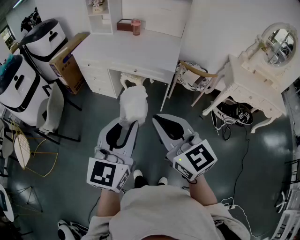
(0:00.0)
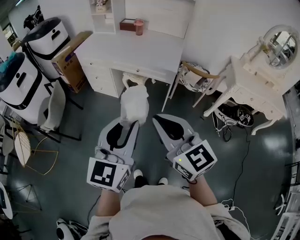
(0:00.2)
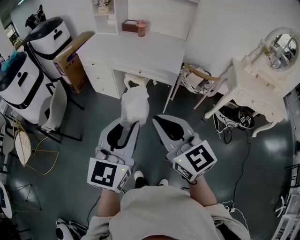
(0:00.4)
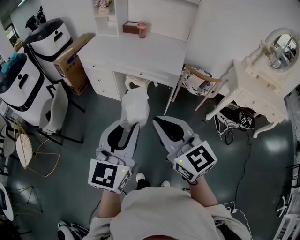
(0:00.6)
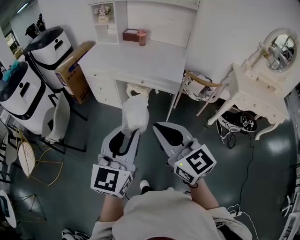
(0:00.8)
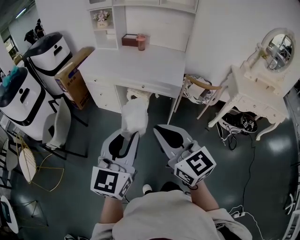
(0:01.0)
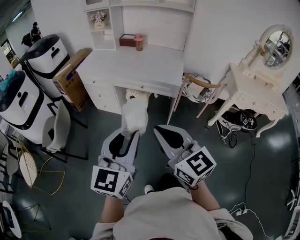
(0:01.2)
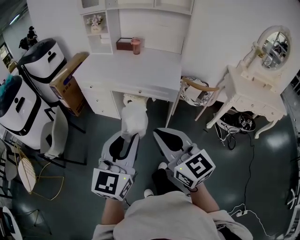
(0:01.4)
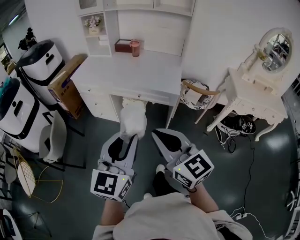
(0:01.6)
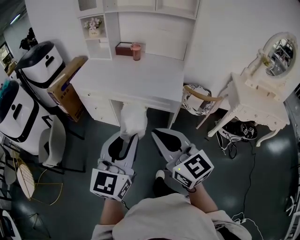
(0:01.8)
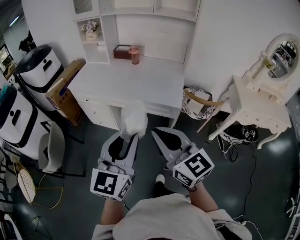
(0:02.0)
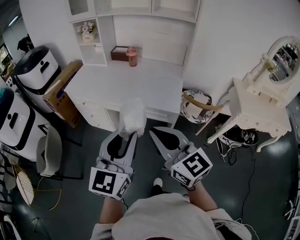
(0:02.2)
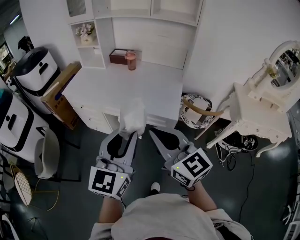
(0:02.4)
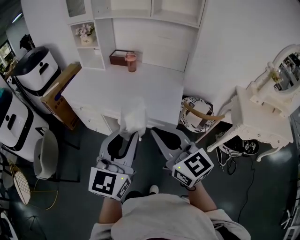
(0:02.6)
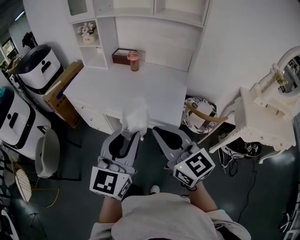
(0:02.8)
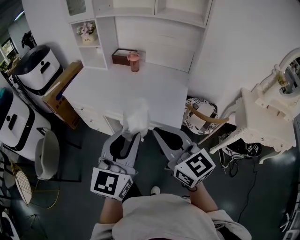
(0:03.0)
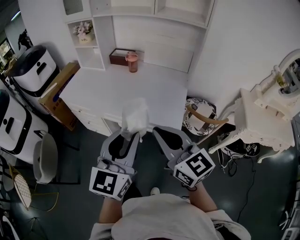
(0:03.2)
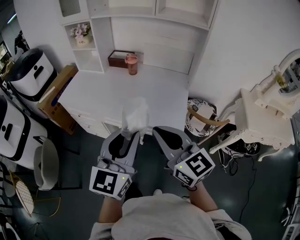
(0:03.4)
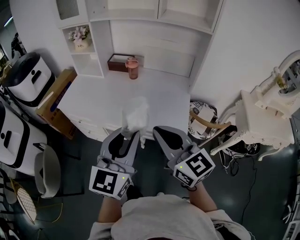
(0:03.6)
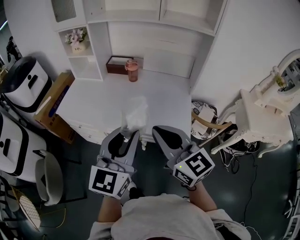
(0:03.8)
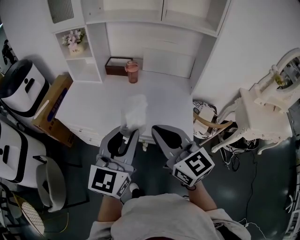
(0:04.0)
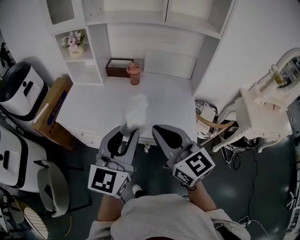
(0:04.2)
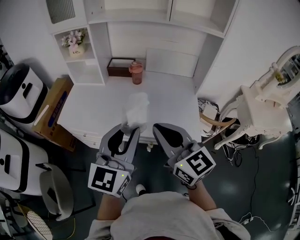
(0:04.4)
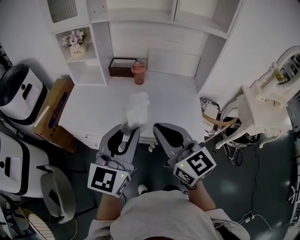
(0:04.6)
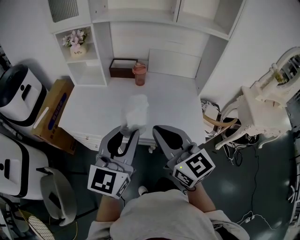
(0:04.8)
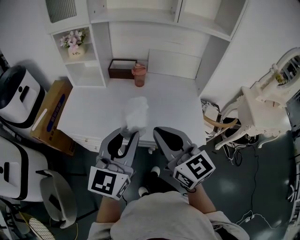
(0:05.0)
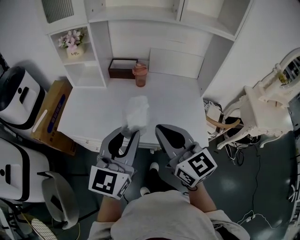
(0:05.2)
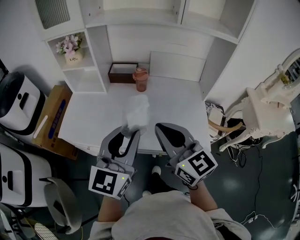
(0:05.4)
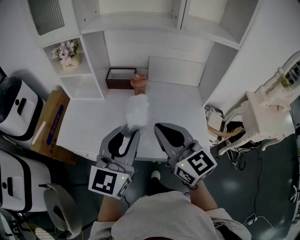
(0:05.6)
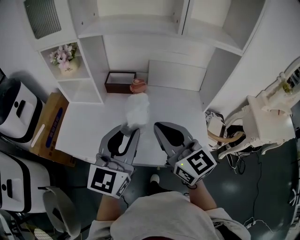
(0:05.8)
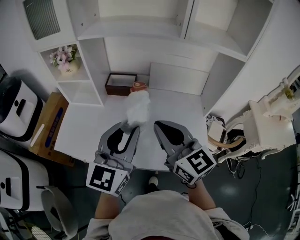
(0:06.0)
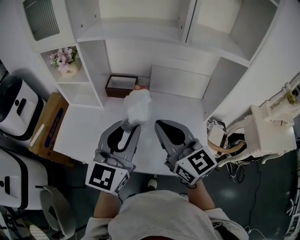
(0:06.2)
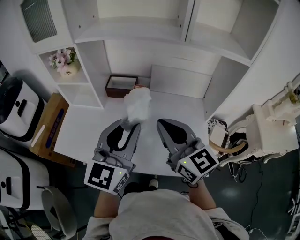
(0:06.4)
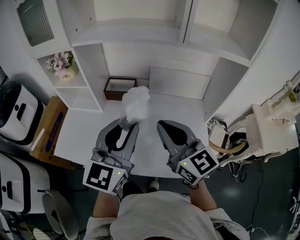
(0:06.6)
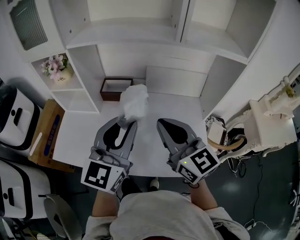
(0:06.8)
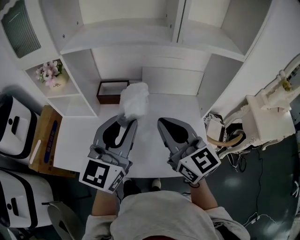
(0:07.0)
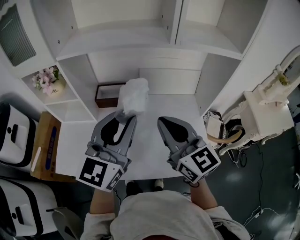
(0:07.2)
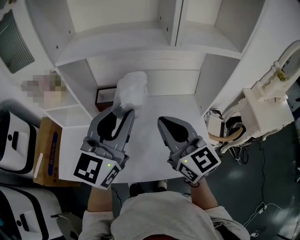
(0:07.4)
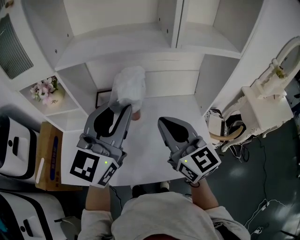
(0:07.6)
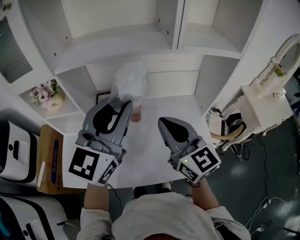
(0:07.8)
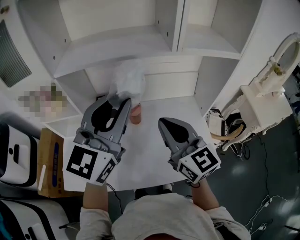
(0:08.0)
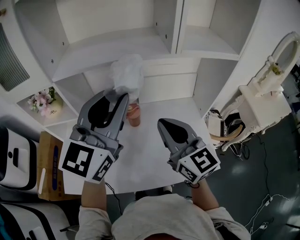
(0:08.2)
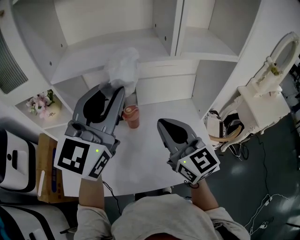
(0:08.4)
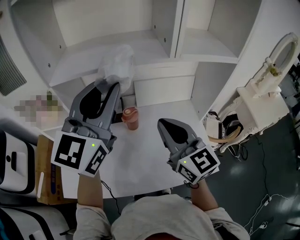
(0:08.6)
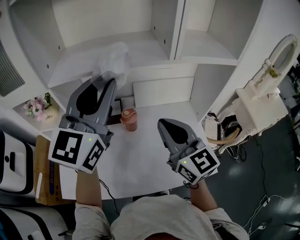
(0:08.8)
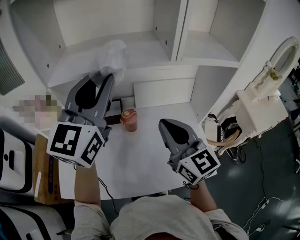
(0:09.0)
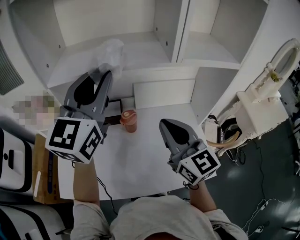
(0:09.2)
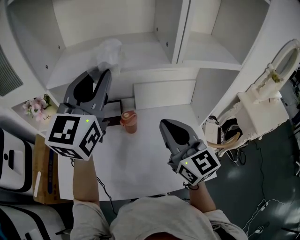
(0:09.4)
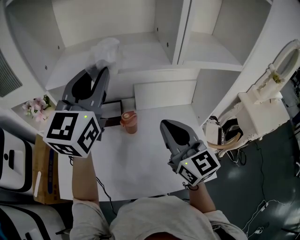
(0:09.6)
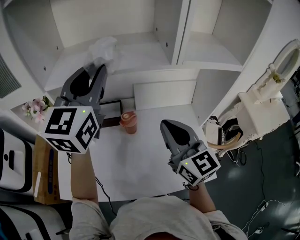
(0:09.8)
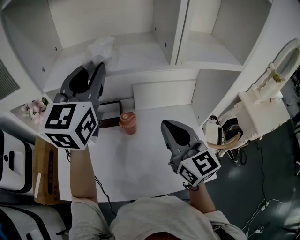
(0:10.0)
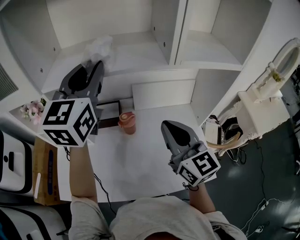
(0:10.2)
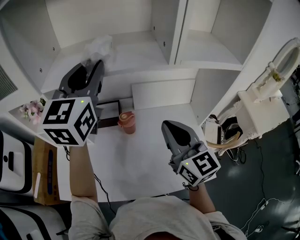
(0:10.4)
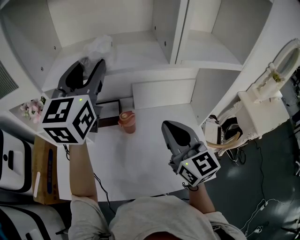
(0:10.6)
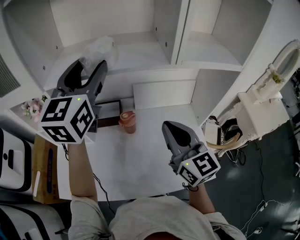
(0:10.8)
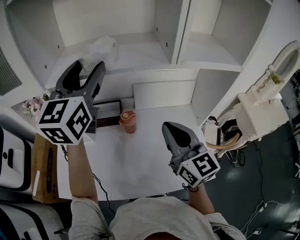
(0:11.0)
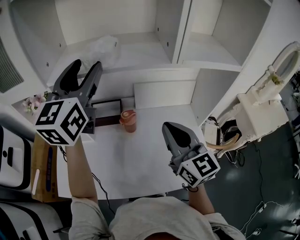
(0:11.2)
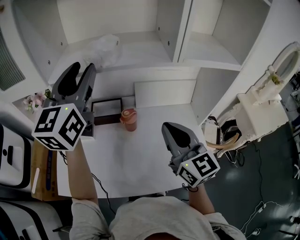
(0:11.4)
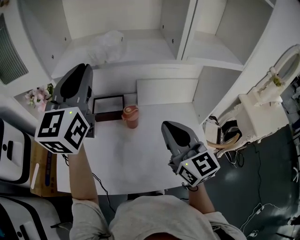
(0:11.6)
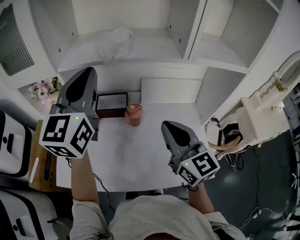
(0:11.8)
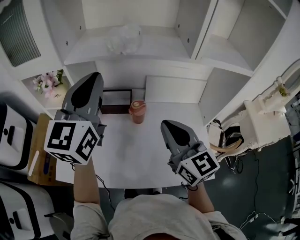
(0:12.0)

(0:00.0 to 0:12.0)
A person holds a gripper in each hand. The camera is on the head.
0:00.0 - 0:01.6: The grippers both shift forward by some 10 cm.
0:01.6 - 0:03.0: Both grippers travel together forward and to the right, roughly 30 cm.
0:03.0 - 0:04.4: The two grippers go some 25 cm forward and to the left.
0:04.4 - 0:06.0: The grippers both shift forward by roughly 20 cm.
0:06.0 - 0:07.6: The right gripper travels forward by some 10 cm, while the left gripper heads forward and upward, covering about 15 cm.
0:07.6 - 0:09.0: The left gripper shifts roughly 10 cm forward and upward.
0:09.0 - 0:10.4: The left gripper goes some 5 cm forward.
0:10.4 - 0:12.0: The right gripper shifts approximately 5 cm to the left; the left gripper shifts about 10 cm backward and to the left, and closes up.

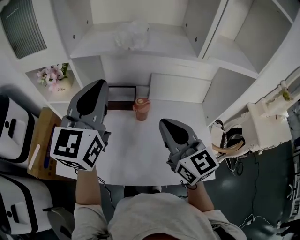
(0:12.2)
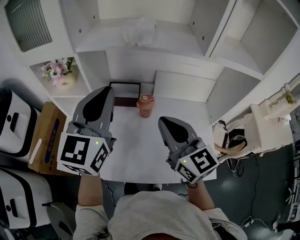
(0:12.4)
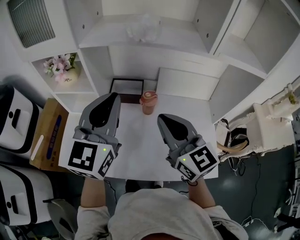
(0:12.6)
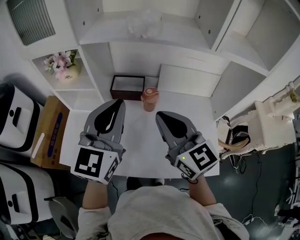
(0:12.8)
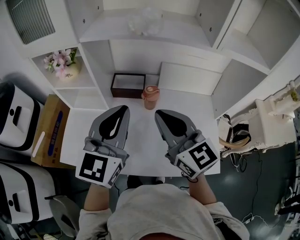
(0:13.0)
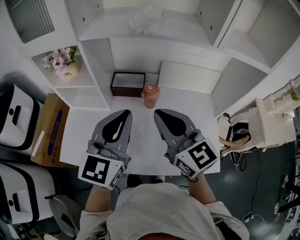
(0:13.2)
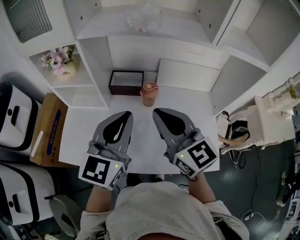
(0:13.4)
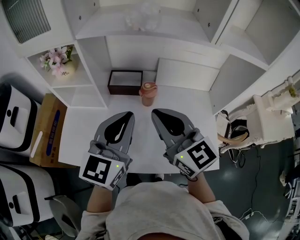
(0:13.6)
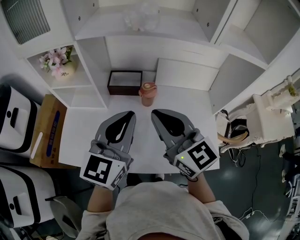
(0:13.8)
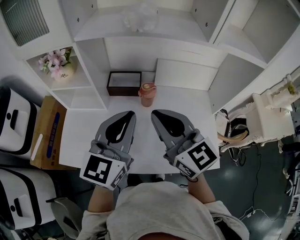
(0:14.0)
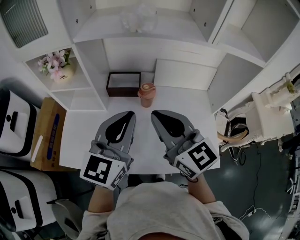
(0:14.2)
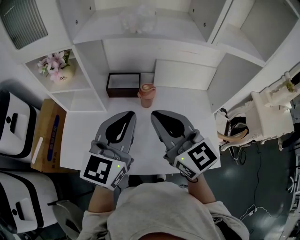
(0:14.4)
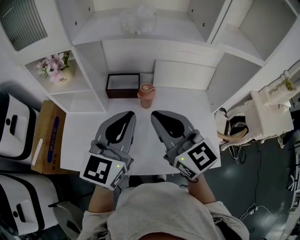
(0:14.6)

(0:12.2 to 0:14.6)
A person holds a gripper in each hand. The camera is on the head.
0:12.2 - 0:13.4: The left gripper moves downward and backward, some 15 cm. The right gripper travels to the left by some 5 cm.
0:13.4 - 0:14.6: Both grippers stay about where they are.

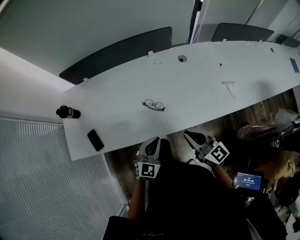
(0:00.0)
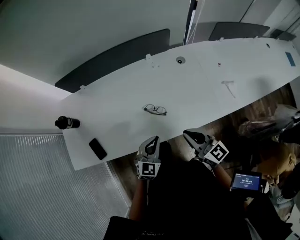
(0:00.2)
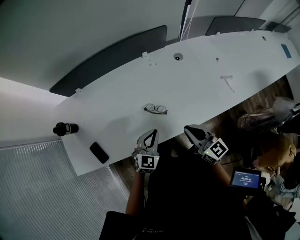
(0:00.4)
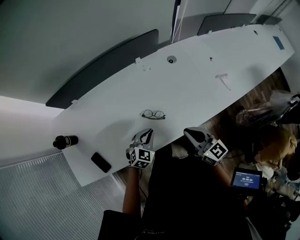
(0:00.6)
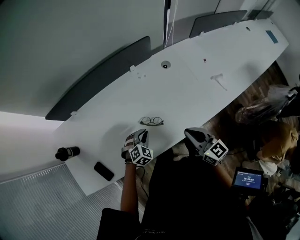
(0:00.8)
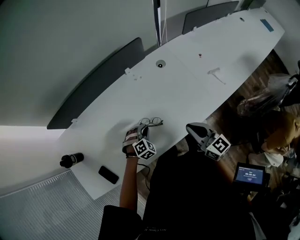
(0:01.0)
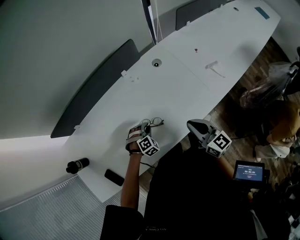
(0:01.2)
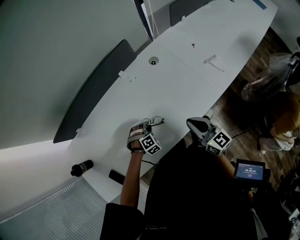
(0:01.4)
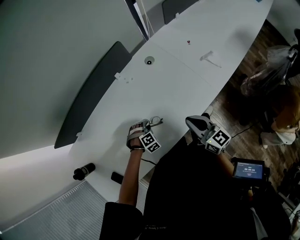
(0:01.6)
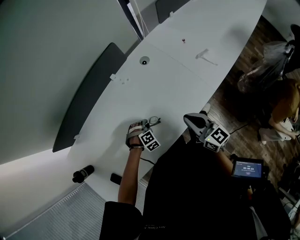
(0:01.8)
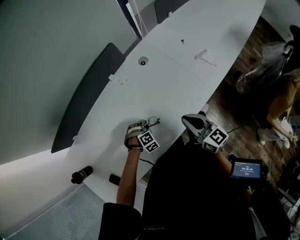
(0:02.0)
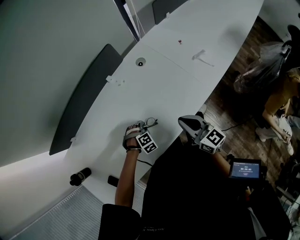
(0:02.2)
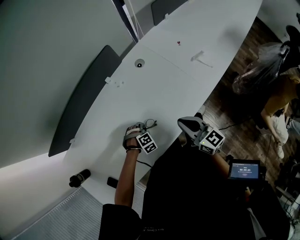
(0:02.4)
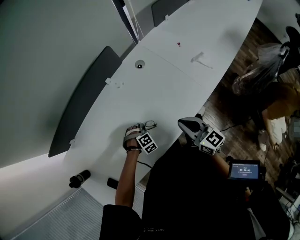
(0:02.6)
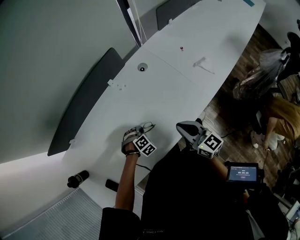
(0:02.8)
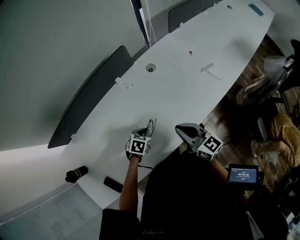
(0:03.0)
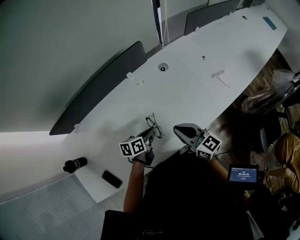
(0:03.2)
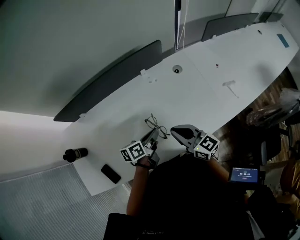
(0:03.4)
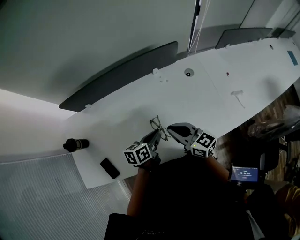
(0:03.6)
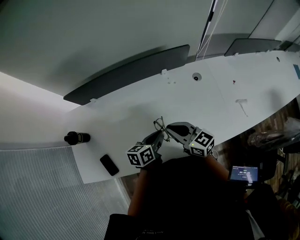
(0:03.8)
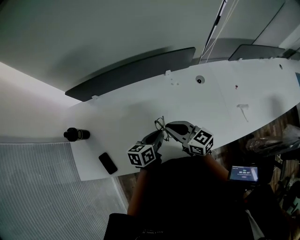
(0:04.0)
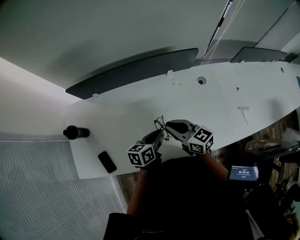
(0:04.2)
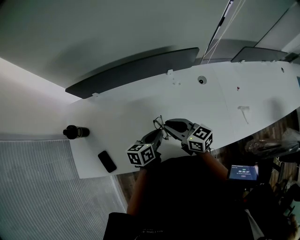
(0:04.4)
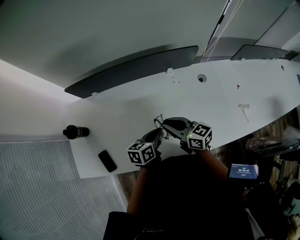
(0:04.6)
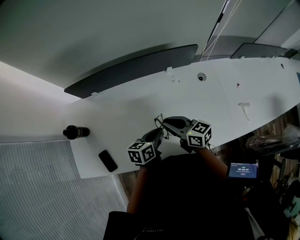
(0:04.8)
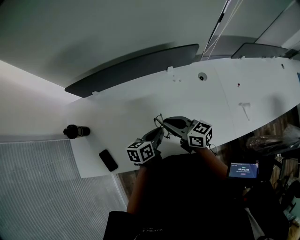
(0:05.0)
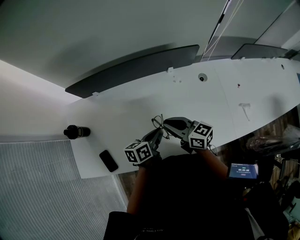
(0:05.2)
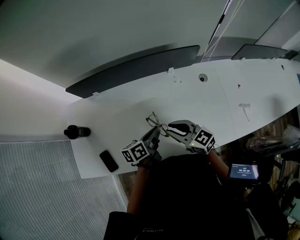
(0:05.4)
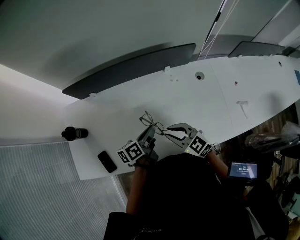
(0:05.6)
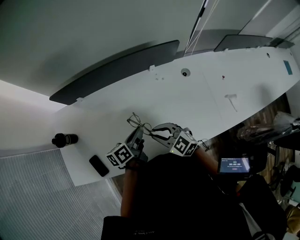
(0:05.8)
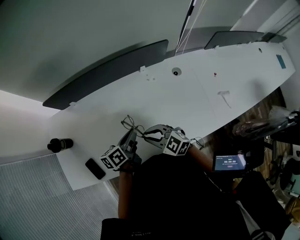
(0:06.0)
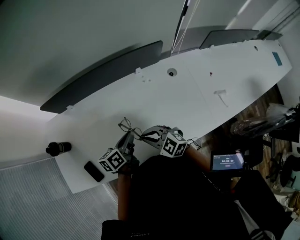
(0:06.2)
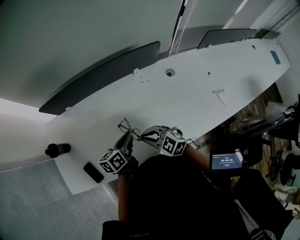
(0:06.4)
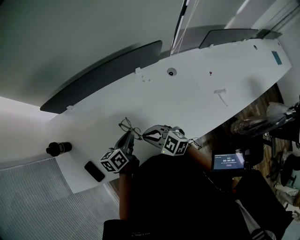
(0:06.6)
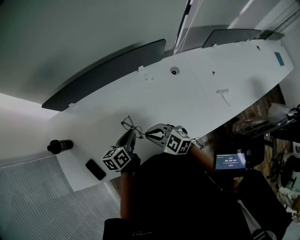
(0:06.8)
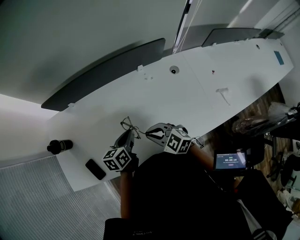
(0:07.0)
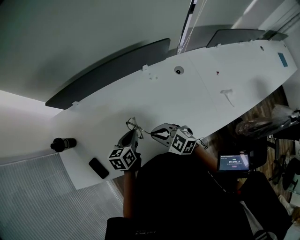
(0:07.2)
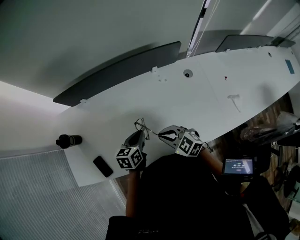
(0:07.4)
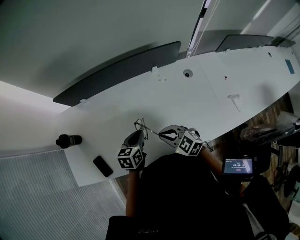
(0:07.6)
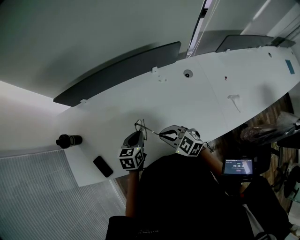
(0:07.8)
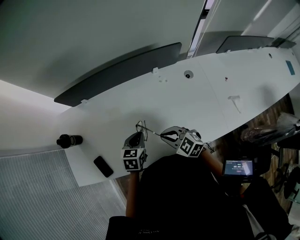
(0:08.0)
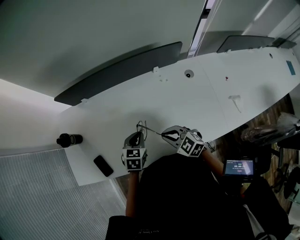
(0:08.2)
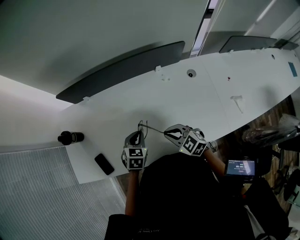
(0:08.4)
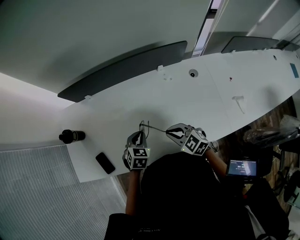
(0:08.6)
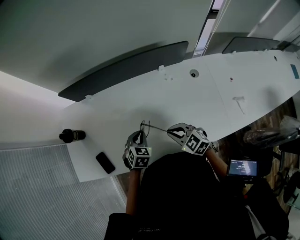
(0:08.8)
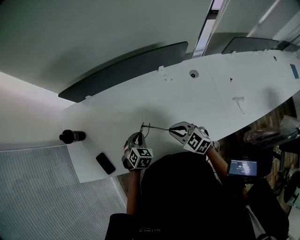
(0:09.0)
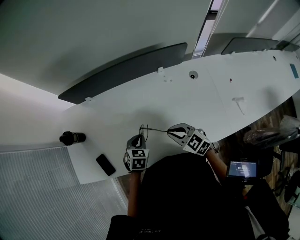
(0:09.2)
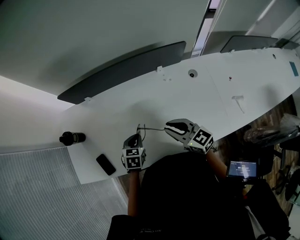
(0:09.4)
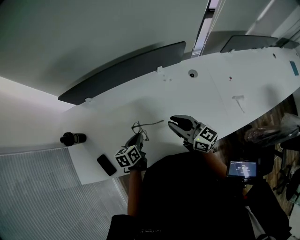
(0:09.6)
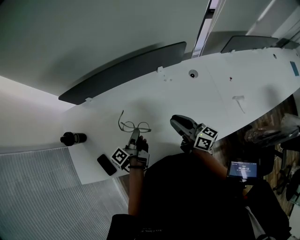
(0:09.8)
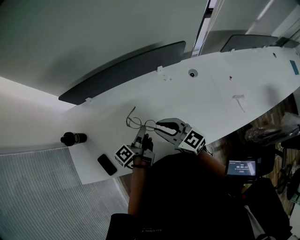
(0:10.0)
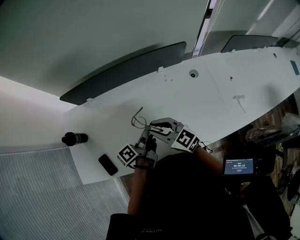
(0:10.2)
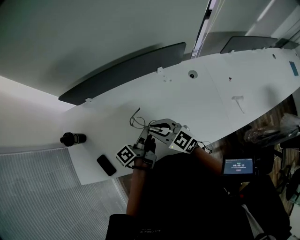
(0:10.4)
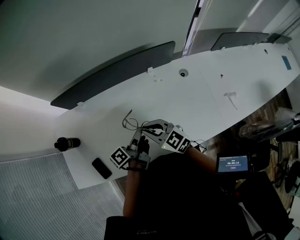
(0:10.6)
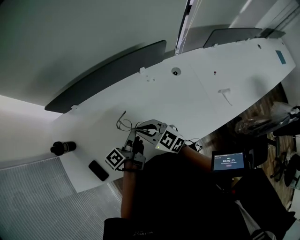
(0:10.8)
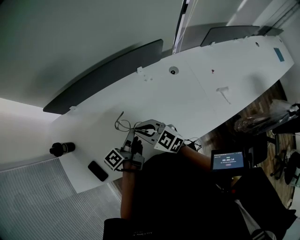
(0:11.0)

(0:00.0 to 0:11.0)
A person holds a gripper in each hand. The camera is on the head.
0:00.0 - 0:01.6: The right gripper travels forward and downward by approximately 10 cm, and swivels approximately 30 degrees. Meanwhile the left gripper travels downward and forward by some 30 cm, angles its fingers downward, by roughly 40 degrees, and opens up.
0:01.6 - 0:03.2: The left gripper is displaced upward by approximately 10 cm, rotates around the line of its fingers by some 90 degrees, counterclockwise from behind, and closes up. Meanwhile the right gripper moves roughly 10 cm.
0:03.2 - 0:04.8: The right gripper changes place by approximately 20 cm, and swivels some 30 degrees. Meanwhile the left gripper shifts by approximately 10 cm, and swivels approximately 20 degrees.
0:04.8 - 0:06.2: The right gripper is displaced backward by approximately 5 cm, and twists some 40 degrees counterclockwise, seen from behind.
0:06.2 - 0:07.8: The left gripper turns by some 30 degrees.
0:07.8 - 0:09.4: The right gripper moves upward, roughly 5 cm, and turns by about 30 degrees. Meanwhile the left gripper ends up about 5 cm from where it was.
0:09.4 - 0:11.0: The left gripper shifts some 10 cm upward and to the right, and rotates around the line of its fingers by some 60 degrees, counterclockwise from behind, while the right gripper moves to the left, some 5 cm.
